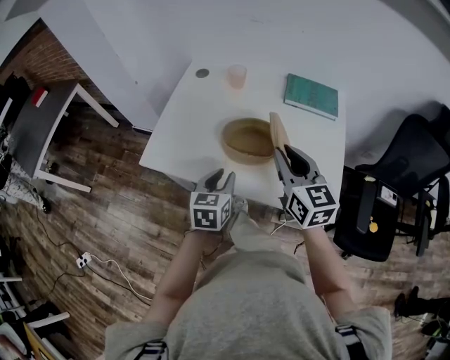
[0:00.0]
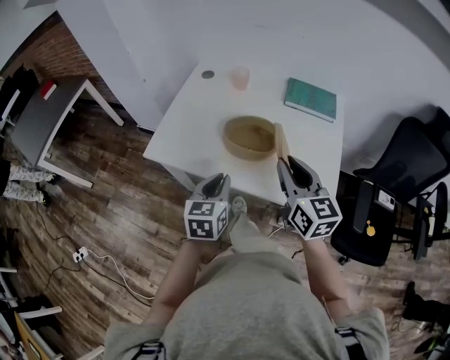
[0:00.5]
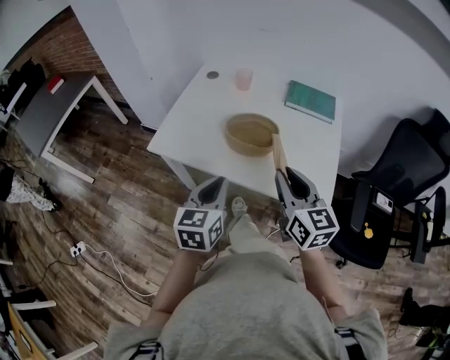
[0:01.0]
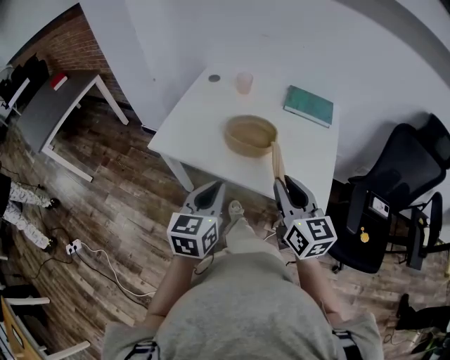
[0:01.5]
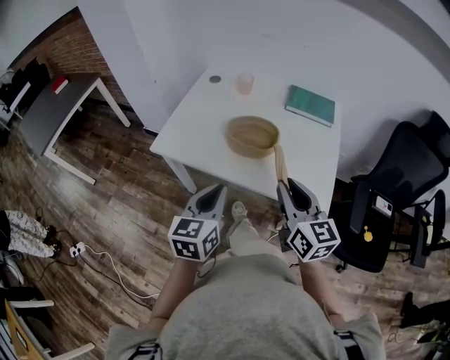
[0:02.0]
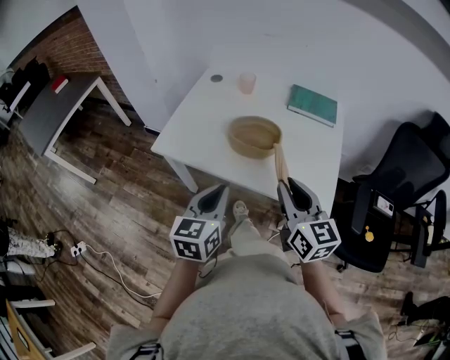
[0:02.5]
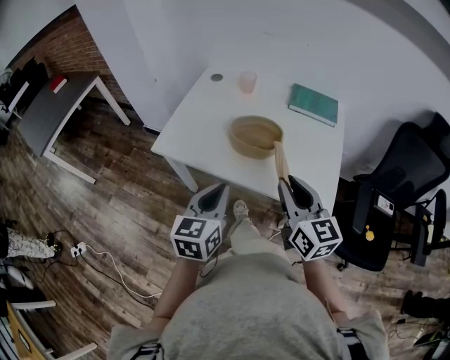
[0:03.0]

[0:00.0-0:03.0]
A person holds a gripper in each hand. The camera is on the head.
0:00.0 to 0:01.5: The right gripper heads backward, covering approximately 15 cm, while the left gripper goes roughly 20 cm backward and upward, and closes its fingers.
0:01.5 to 0:03.0: The grippers move only a little.

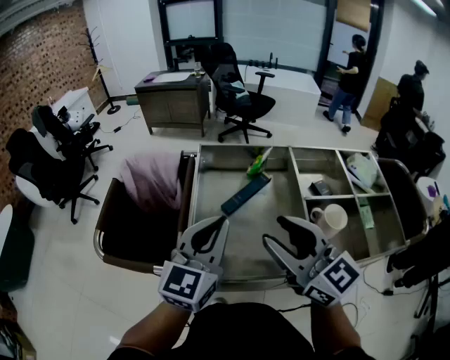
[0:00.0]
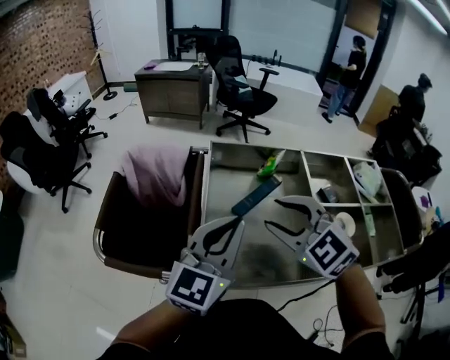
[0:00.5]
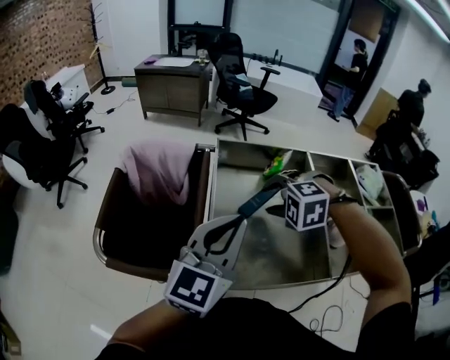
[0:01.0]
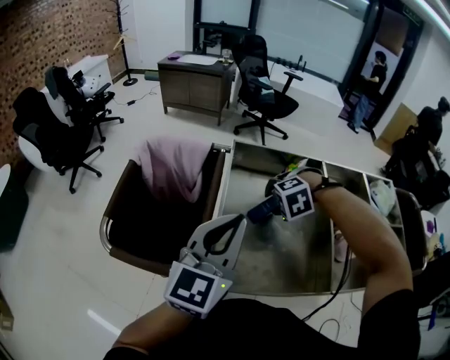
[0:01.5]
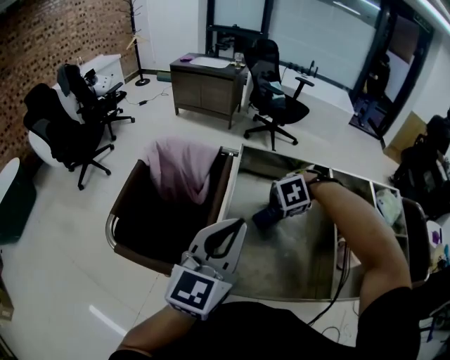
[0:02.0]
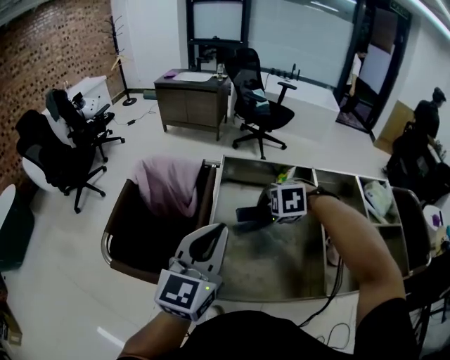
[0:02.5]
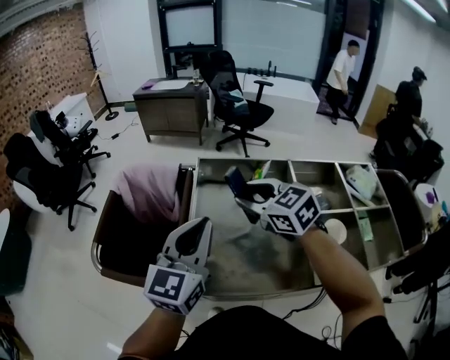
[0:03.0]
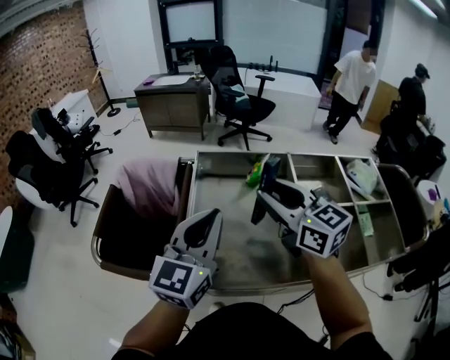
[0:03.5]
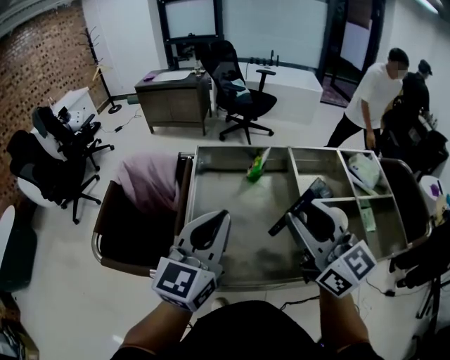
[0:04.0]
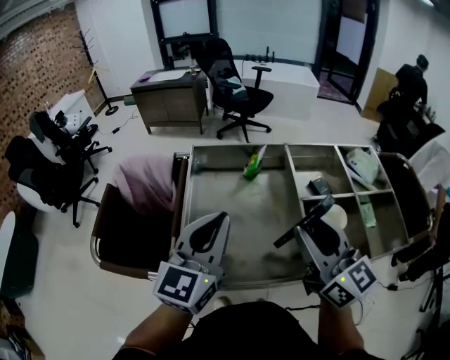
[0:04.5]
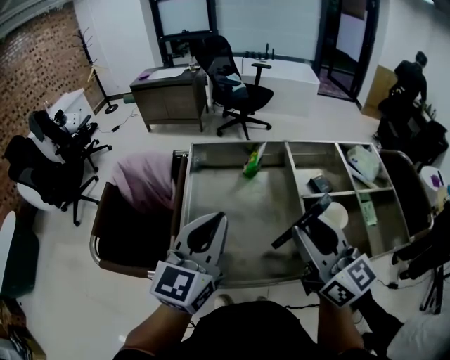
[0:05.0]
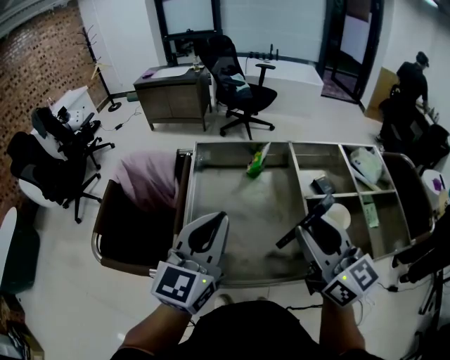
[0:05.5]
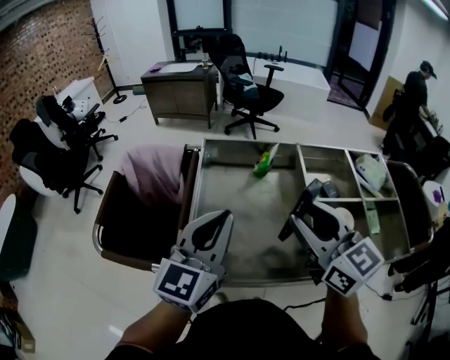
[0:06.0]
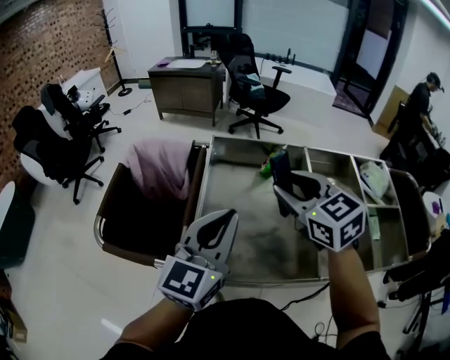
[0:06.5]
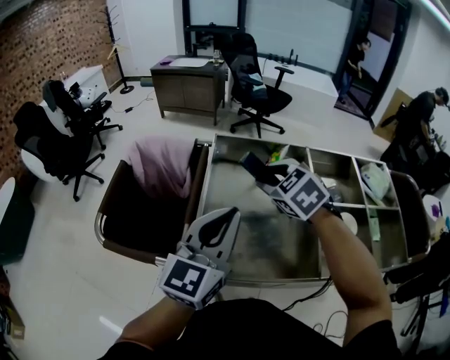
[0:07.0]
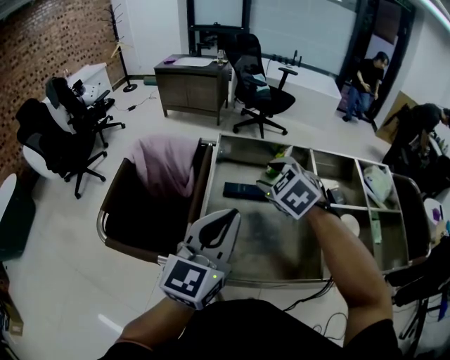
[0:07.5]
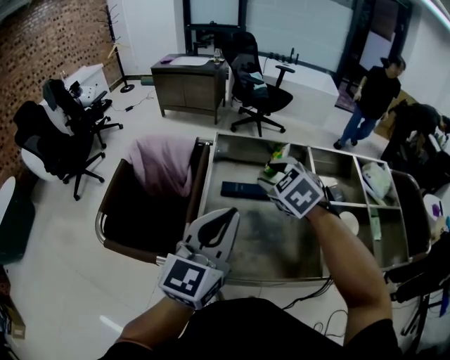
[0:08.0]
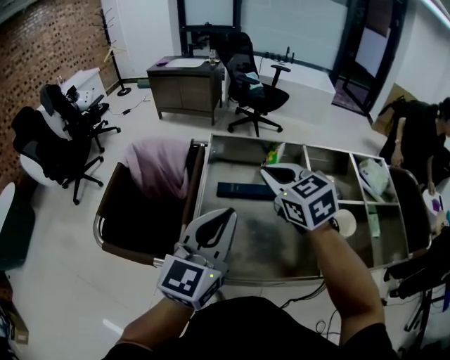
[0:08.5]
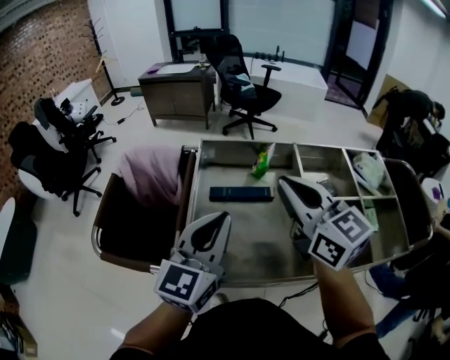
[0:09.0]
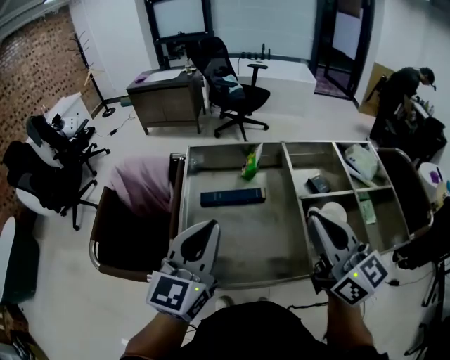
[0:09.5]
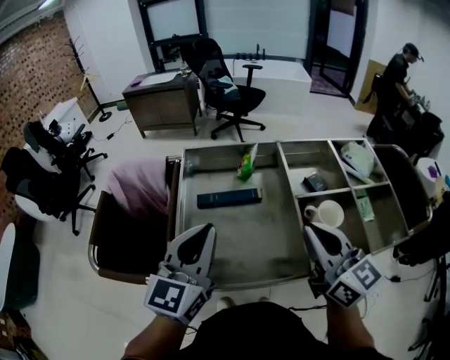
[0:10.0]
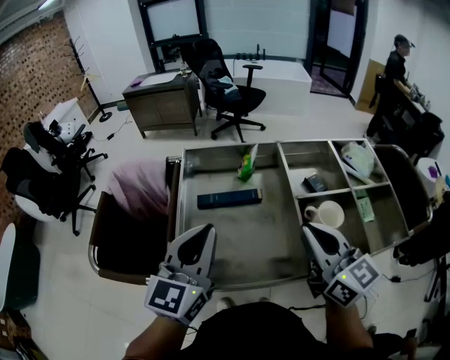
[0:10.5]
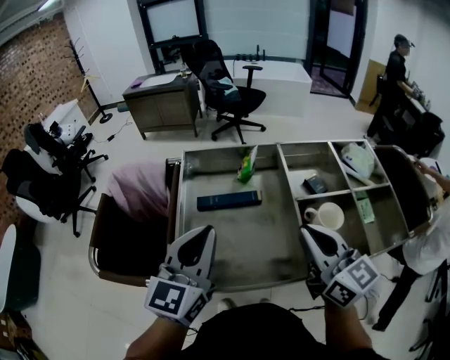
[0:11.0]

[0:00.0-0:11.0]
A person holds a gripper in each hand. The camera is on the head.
0:00.0 to 0:02.0: The right gripper shifts roughly 25 cm downward, and angles its fingers downward, by about 90 degrees; the left gripper changes place by roughly 5 cm.
0:02.0 to 0:03.5: The left gripper moves some 5 cm; the right gripper goes some 25 cm upward, and points its fingers approximately 80 degrees further upward.
0:03.5 to 0:05.5: The right gripper shifts some 15 cm backward and to the right.
0:05.5 to 0:07.5: The right gripper travels forward, to the left and downward by approximately 25 cm, and tips its fingers downward by about 50 degrees.
0:07.5 to 0:09.0: The right gripper goes some 20 cm upward, backward and to the right, points its fingers about 40 degrees further upward, and closes.
0:09.0 to 0:11.0: The right gripper is displaced to the right, backward and downward by some 15 cm.

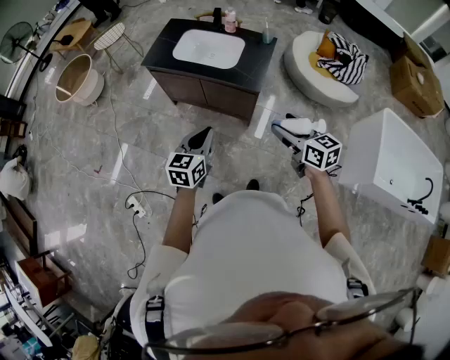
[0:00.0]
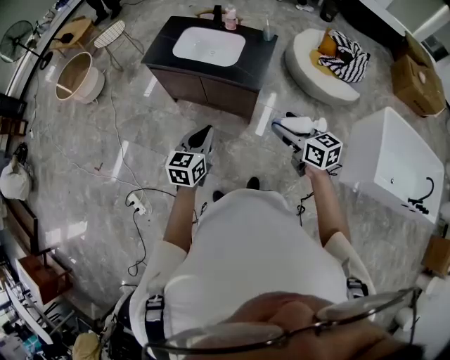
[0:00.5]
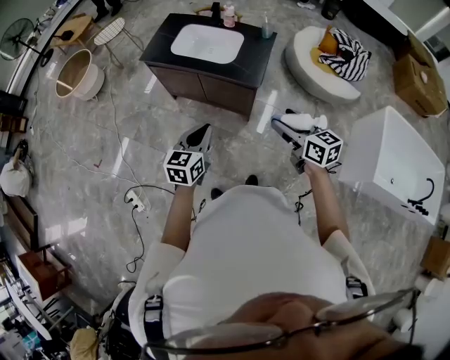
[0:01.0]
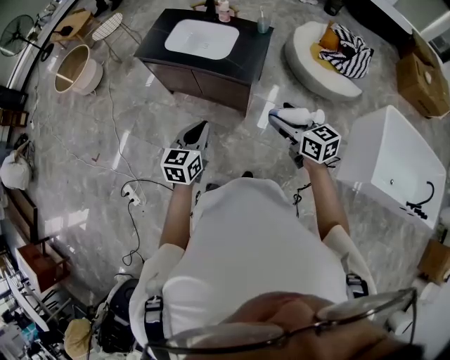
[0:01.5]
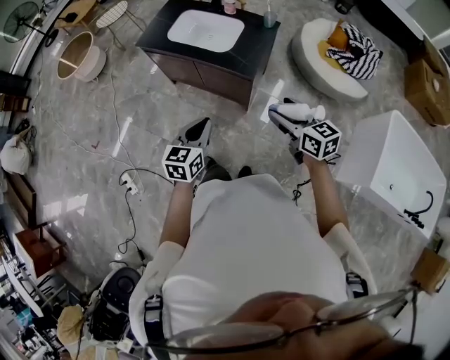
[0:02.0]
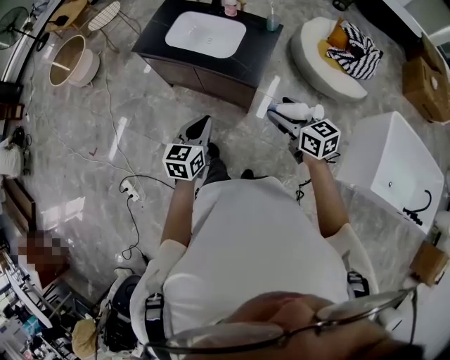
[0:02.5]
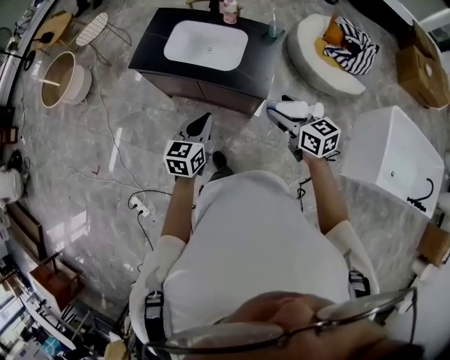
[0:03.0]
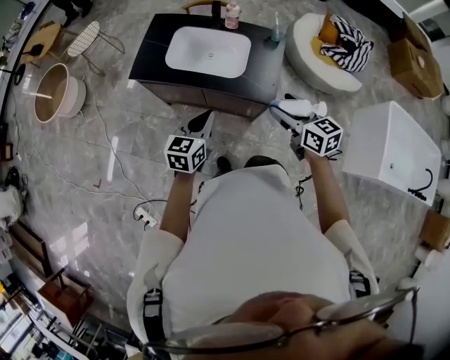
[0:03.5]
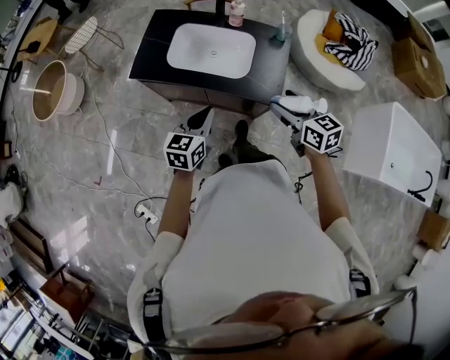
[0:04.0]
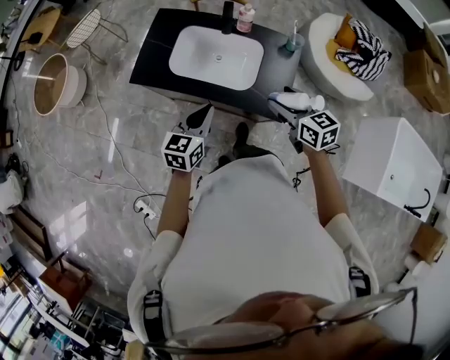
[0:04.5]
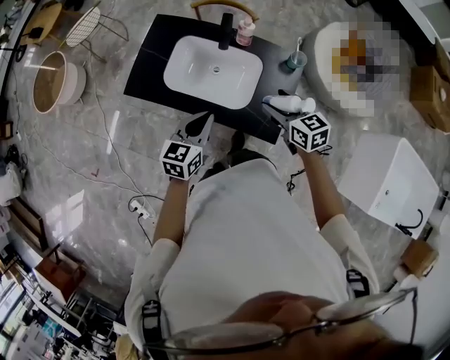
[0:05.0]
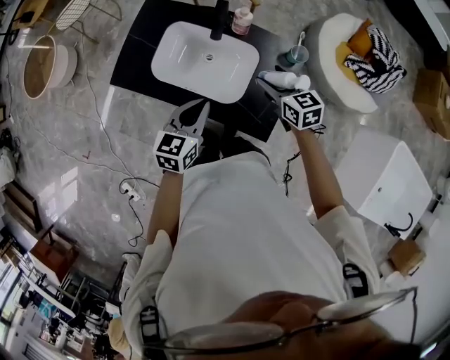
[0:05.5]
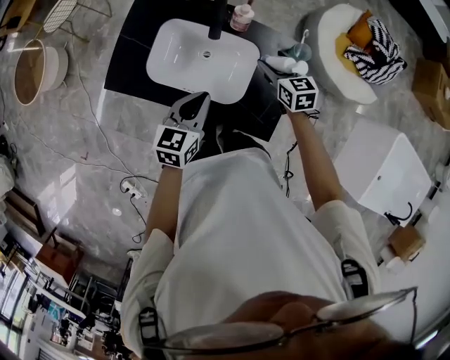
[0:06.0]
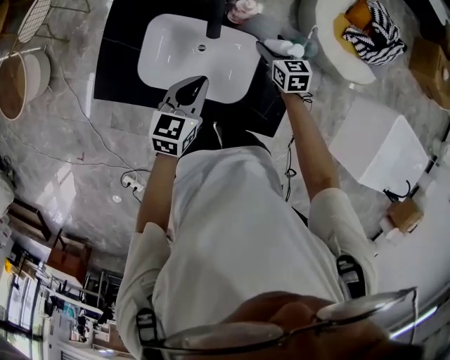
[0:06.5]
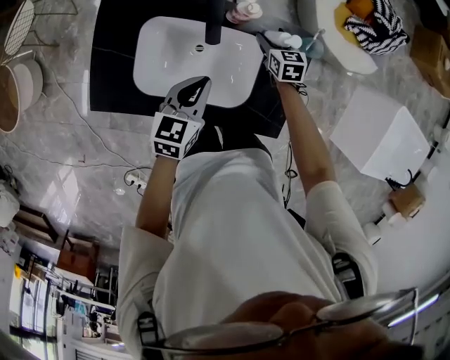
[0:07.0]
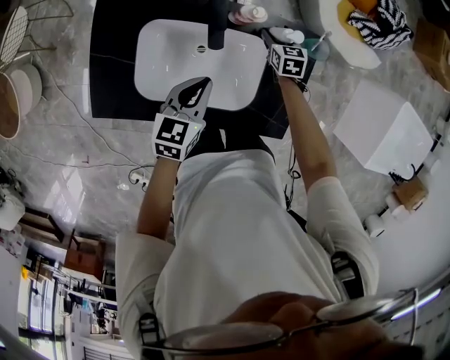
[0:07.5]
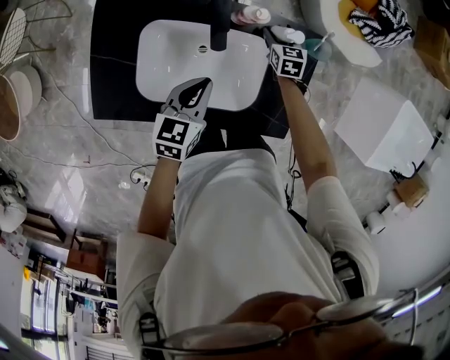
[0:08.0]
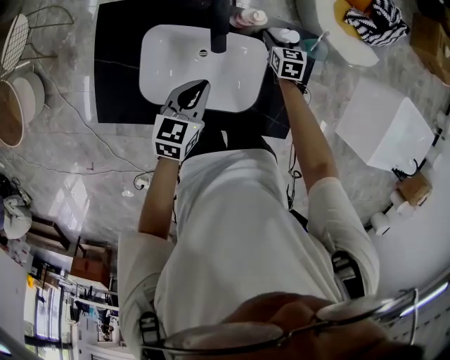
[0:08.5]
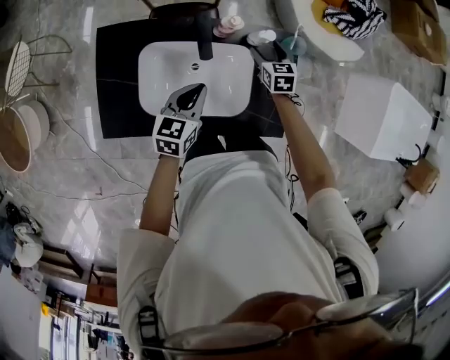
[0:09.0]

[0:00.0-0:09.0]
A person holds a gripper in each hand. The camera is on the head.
0:00.0 to 0:02.0: Both grippers move to the right, roughly 10 cm.
0:02.0 to 0:04.5: Both grippers travel together forward, some 35 cm.
0:04.5 to 0:07.0: The right gripper goes roughly 50 cm forward and downward, and swivels some 30 degrees, while the left gripper goes about 30 cm forward and downward.
0:07.0 to 0:09.0: The right gripper moves roughly 5 cm.

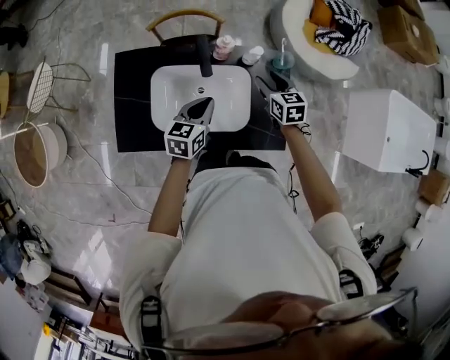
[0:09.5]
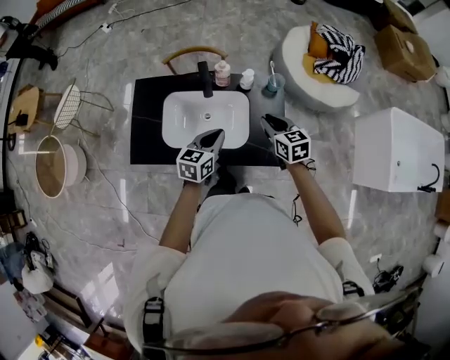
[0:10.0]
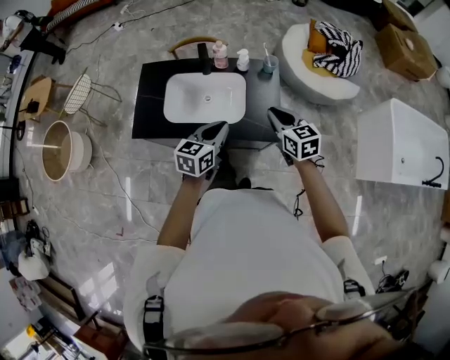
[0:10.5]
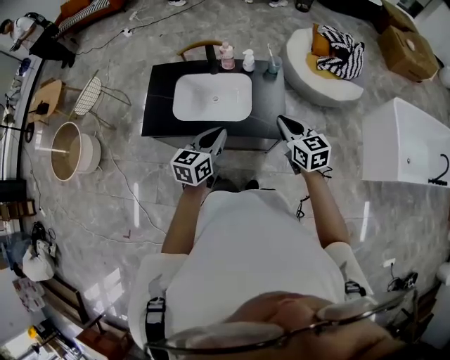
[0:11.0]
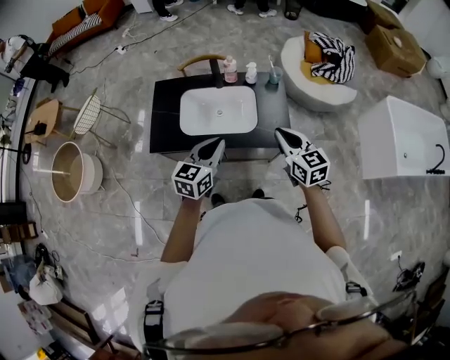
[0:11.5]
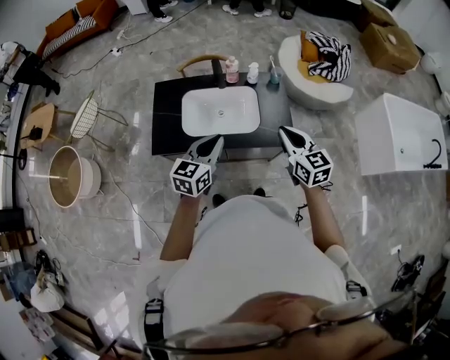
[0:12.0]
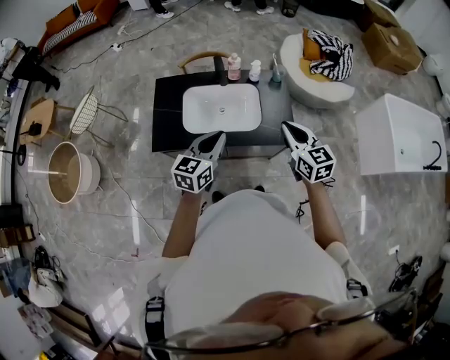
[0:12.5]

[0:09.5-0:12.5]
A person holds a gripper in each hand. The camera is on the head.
0:09.5 to 0:11.0: Both grippers move backward and upward, about 30 cm. The right gripper closes up.
0:11.0 to 0:12.5: The right gripper is displaced to the left and upward by some 10 cm. Meanwhile the left gripper heads to the left, covering about 10 cm.
